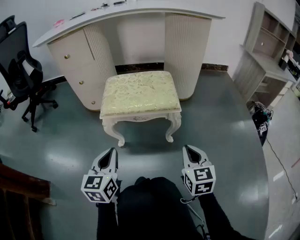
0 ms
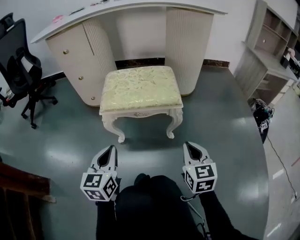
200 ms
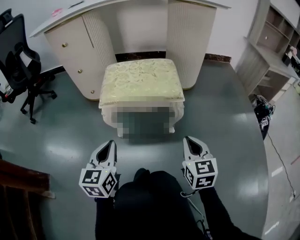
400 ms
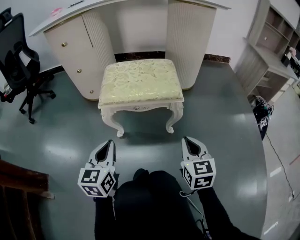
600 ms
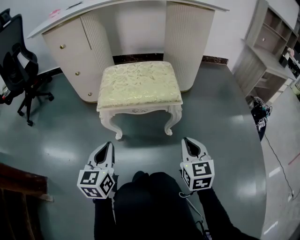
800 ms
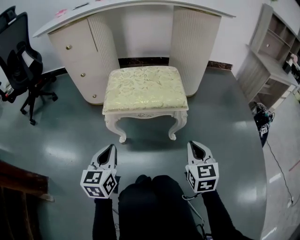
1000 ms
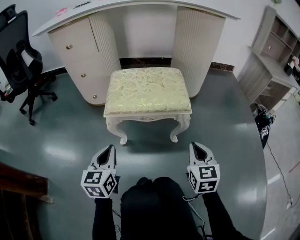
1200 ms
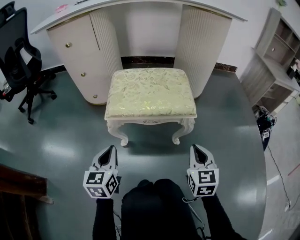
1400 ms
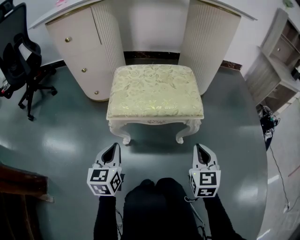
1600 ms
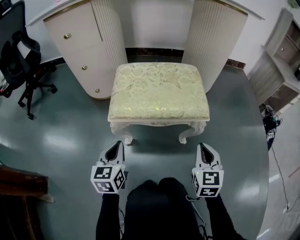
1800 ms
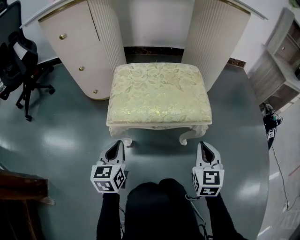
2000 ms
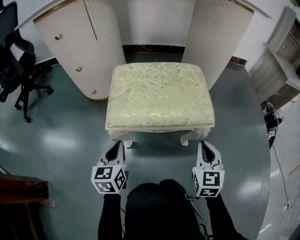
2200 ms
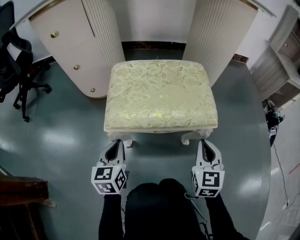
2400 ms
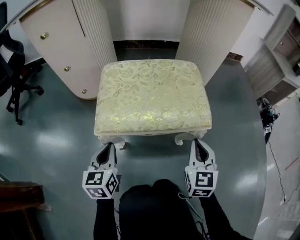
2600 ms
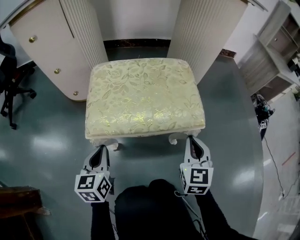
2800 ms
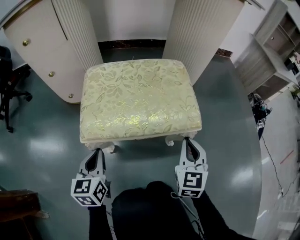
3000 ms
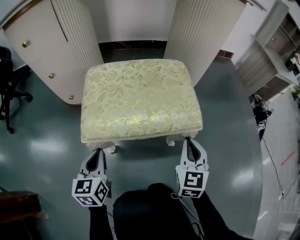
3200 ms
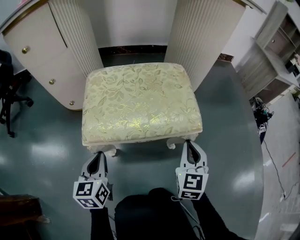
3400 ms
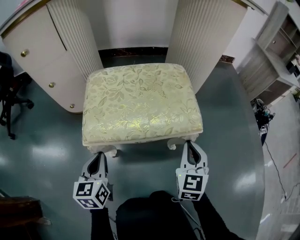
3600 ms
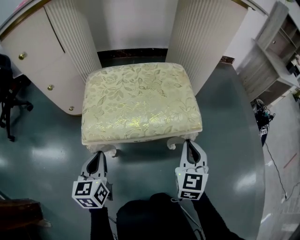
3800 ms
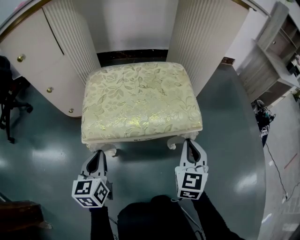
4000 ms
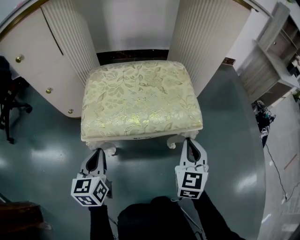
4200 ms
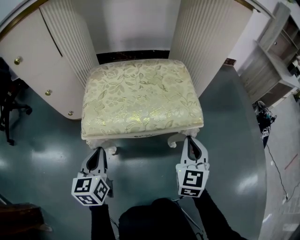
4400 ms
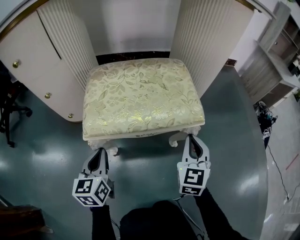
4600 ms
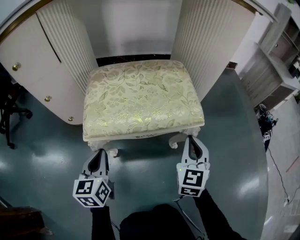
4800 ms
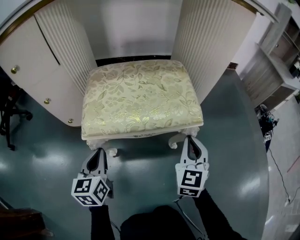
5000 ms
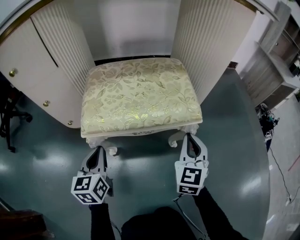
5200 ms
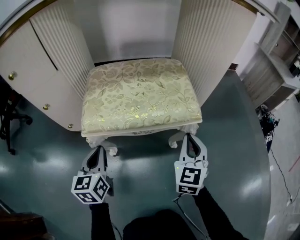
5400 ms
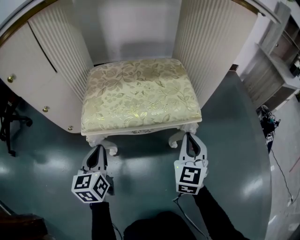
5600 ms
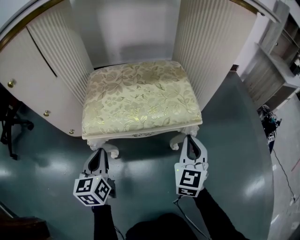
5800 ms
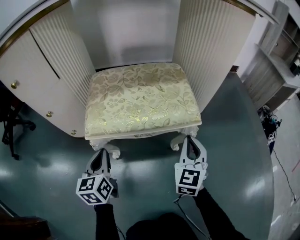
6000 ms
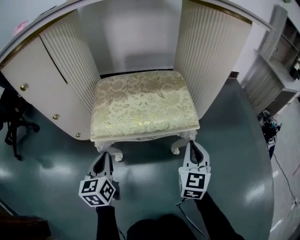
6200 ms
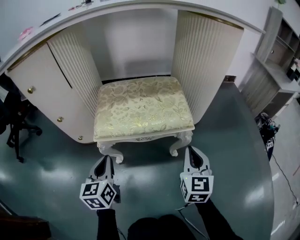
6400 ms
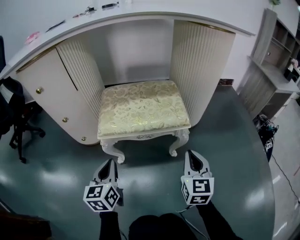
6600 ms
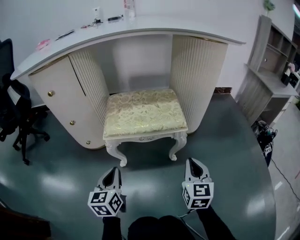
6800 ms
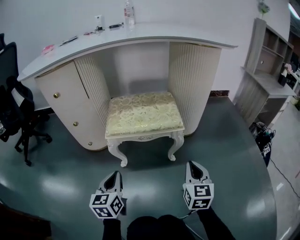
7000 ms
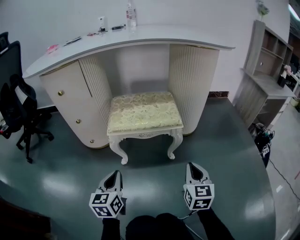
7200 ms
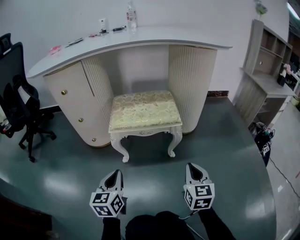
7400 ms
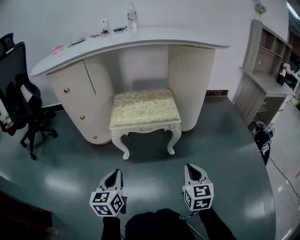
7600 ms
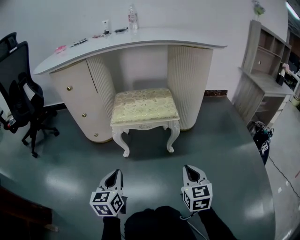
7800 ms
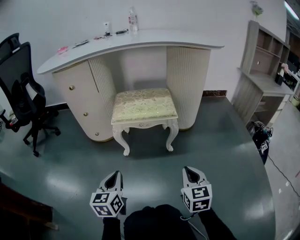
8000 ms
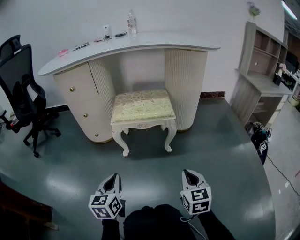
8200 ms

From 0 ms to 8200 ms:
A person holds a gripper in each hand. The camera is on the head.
From 0 ms to 1600 ms: The left gripper shifts approximately 10 cm downward and forward, while the right gripper travels forward by approximately 5 cm.
From 1600 ms to 3200 ms: The right gripper heads forward, covering approximately 10 cm; the left gripper goes approximately 10 cm forward and downward.
From 3200 ms to 5000 ms: There are only small adjustments of the grippers.
From 5000 ms to 6600 ms: Both grippers travel together backward, about 5 cm.
From 6600 ms to 8200 ms: Both grippers travel together backward, some 20 cm.

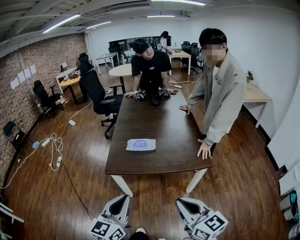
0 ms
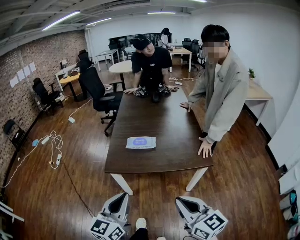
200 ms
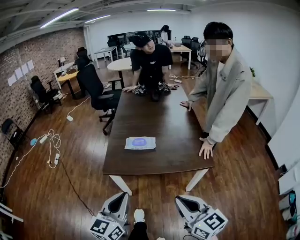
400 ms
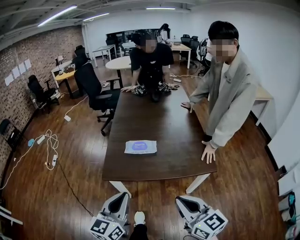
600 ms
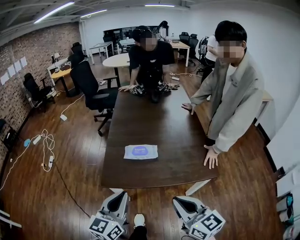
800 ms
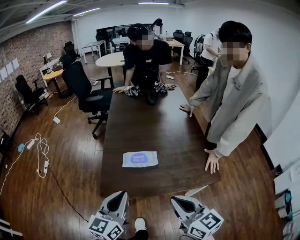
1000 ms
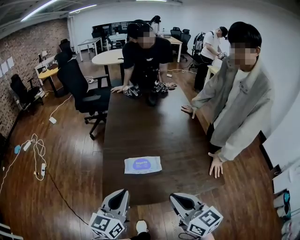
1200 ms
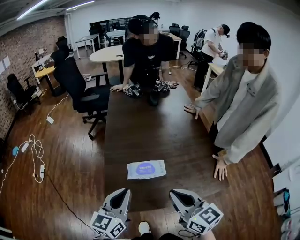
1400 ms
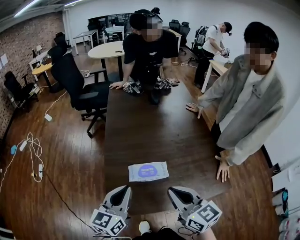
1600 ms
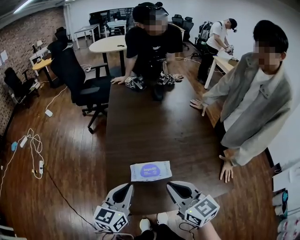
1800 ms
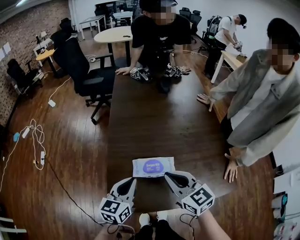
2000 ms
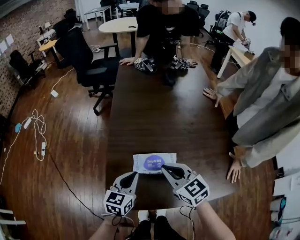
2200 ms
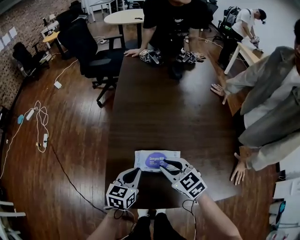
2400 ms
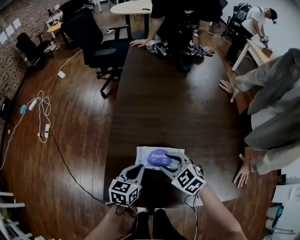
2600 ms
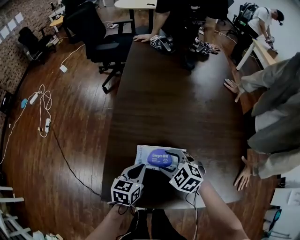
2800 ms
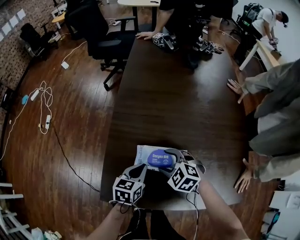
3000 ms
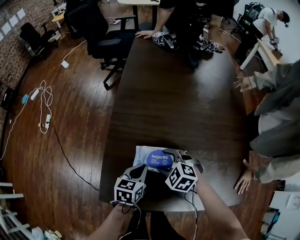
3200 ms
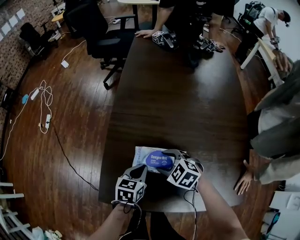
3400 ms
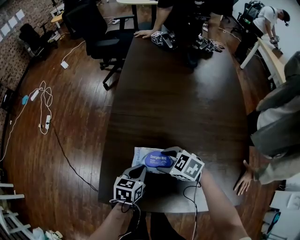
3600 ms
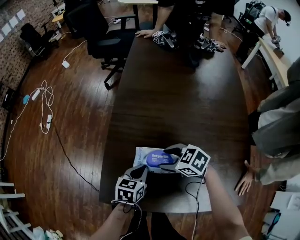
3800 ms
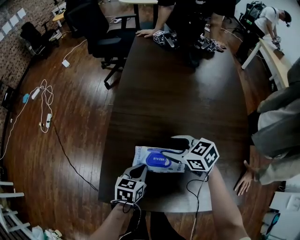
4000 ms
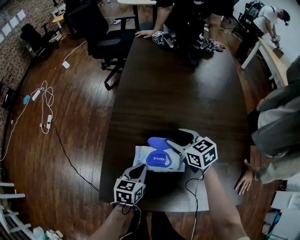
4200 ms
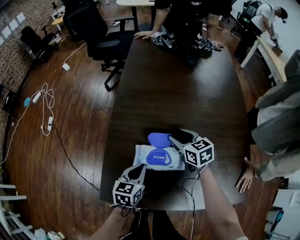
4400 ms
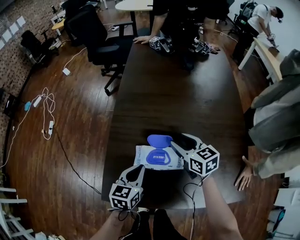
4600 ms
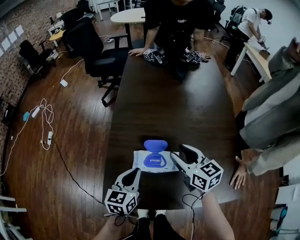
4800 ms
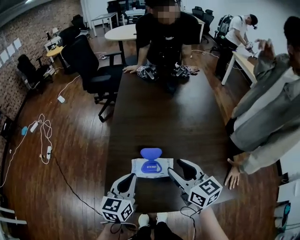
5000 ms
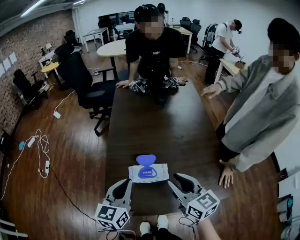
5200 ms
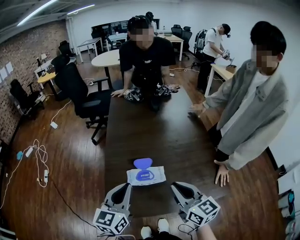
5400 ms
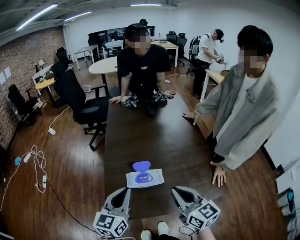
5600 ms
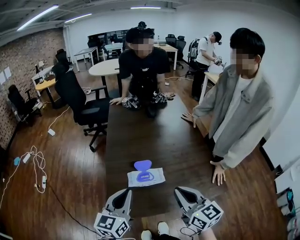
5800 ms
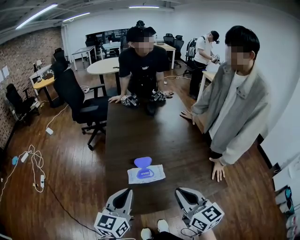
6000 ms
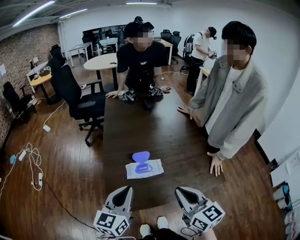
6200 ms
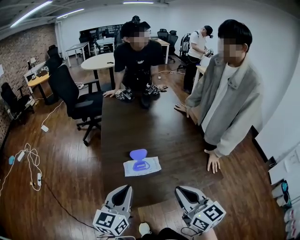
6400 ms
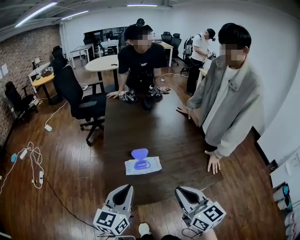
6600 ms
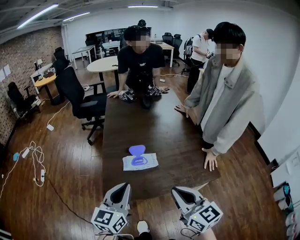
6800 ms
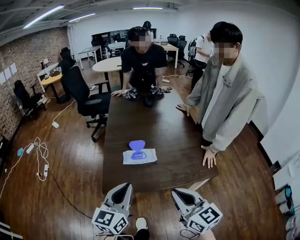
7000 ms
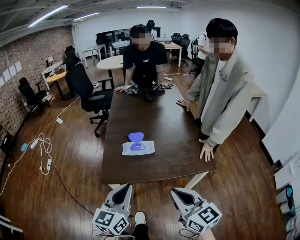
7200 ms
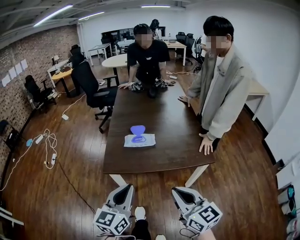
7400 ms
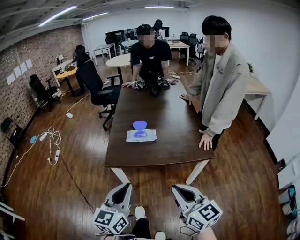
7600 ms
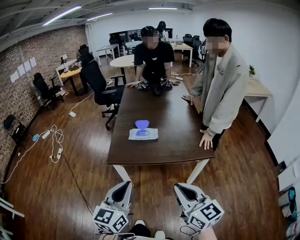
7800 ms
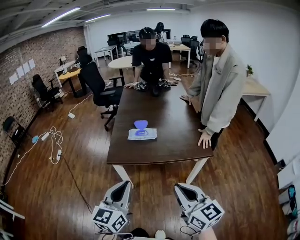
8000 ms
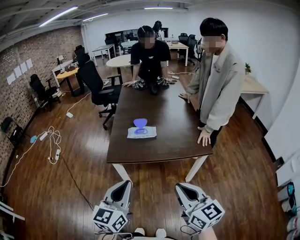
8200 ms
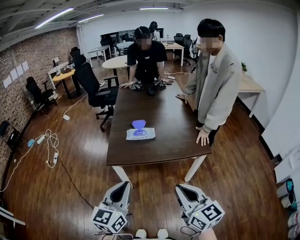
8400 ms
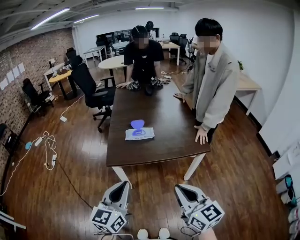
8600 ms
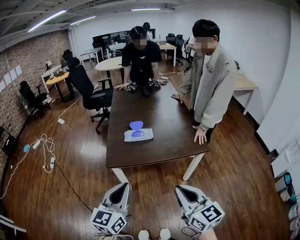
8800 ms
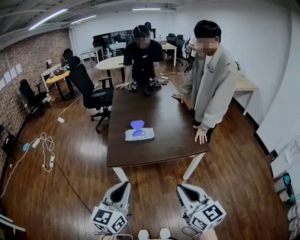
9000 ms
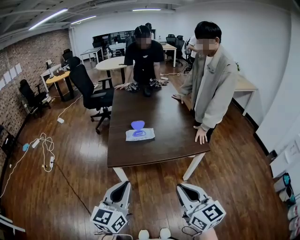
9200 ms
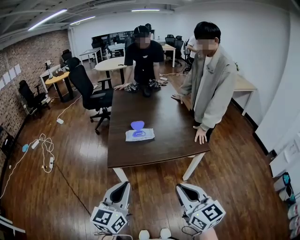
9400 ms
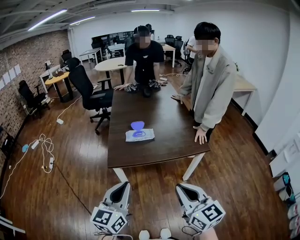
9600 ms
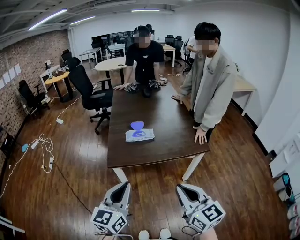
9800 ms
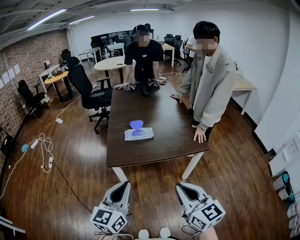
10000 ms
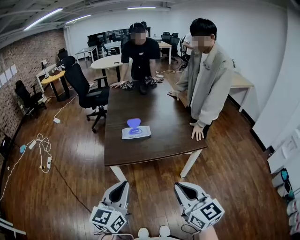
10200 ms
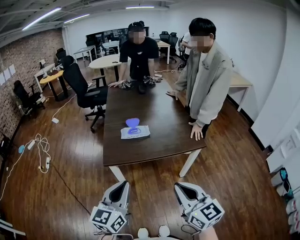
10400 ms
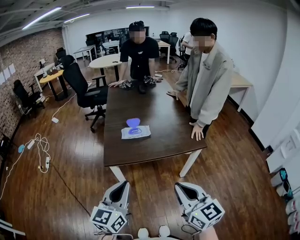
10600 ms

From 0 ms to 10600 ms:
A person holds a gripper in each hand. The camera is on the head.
From 0 ms to 1600 ms: Both grippers are carried forward, some 40 cm.
From 1600 ms to 3000 ms: The right gripper moves downward and forward, roughly 30 cm, points its fingers some 40 degrees further downward, and opens up, while the left gripper heads downward, covering approximately 25 cm, and angles its fingers downward, by approximately 30 degrees.
From 3000 ms to 4600 ms: The right gripper moves to the right, forward and upward, roughly 15 cm, and rolls clockwise, seen from behind, by about 40 degrees.
From 4600 ms to 6000 ms: The left gripper is displaced upward and backward by roughly 30 cm, and turns by some 30 degrees; the right gripper moves backward and upward, about 40 cm, rotates roughly 30 degrees, and closes up.
From 6000 ms to 7600 ms: Both grippers travel together backward, roughly 30 cm.
From 7600 ms to 9000 ms: The left gripper is displaced to the left by about 5 cm. Meanwhile the right gripper is displaced backward by approximately 5 cm.
From 9000 ms to 10600 ms: Neither gripper changes place.

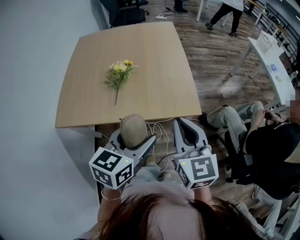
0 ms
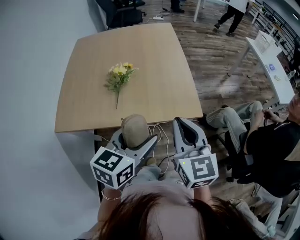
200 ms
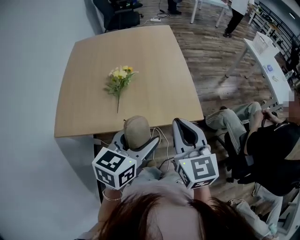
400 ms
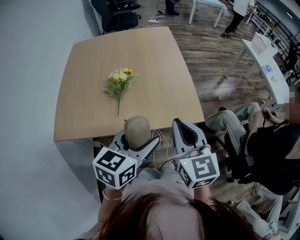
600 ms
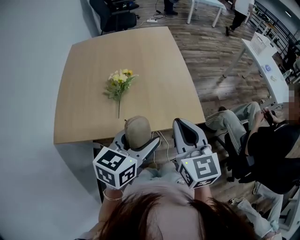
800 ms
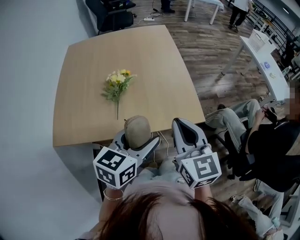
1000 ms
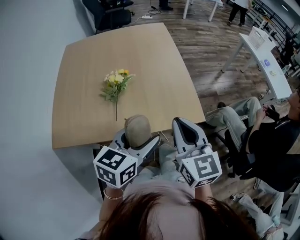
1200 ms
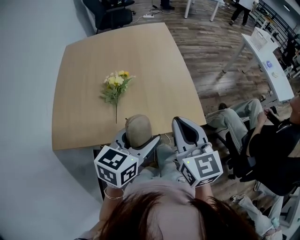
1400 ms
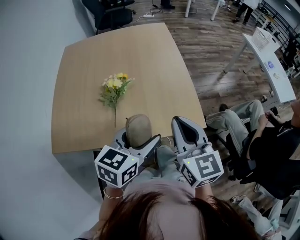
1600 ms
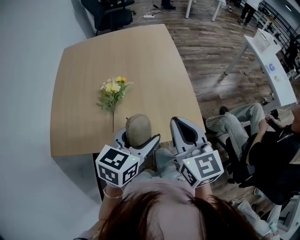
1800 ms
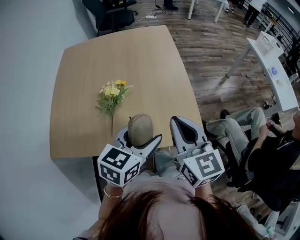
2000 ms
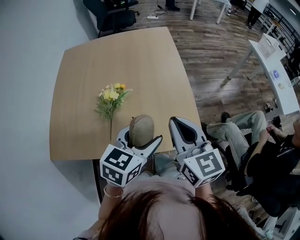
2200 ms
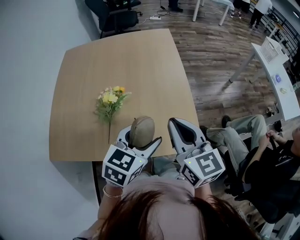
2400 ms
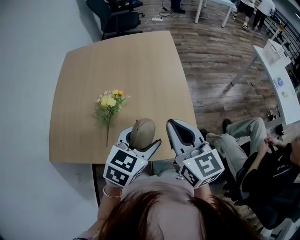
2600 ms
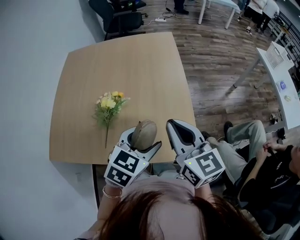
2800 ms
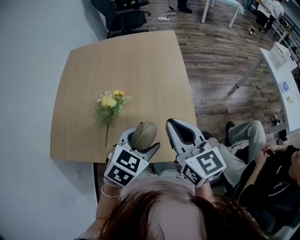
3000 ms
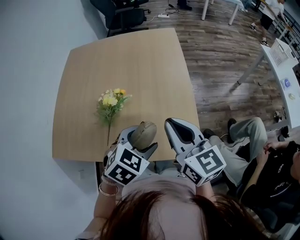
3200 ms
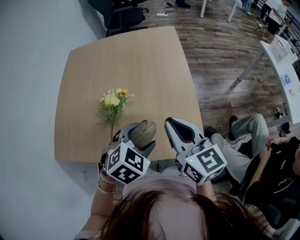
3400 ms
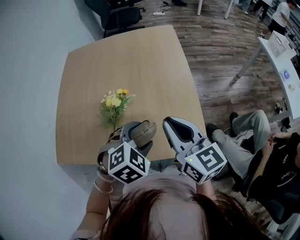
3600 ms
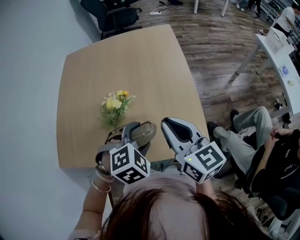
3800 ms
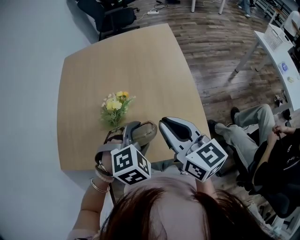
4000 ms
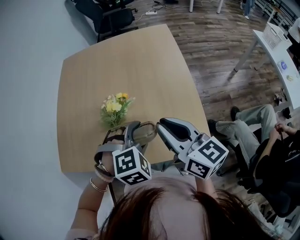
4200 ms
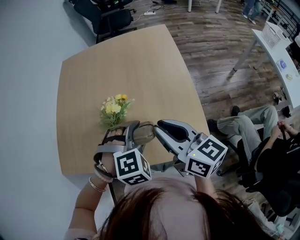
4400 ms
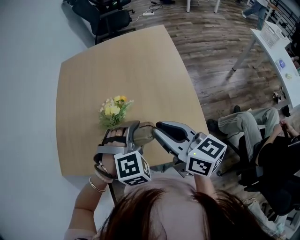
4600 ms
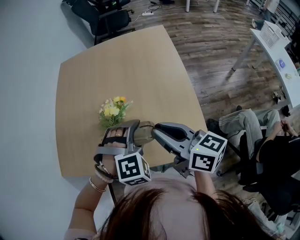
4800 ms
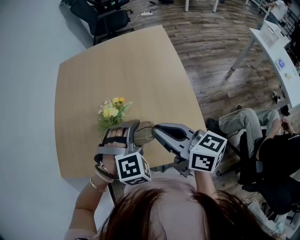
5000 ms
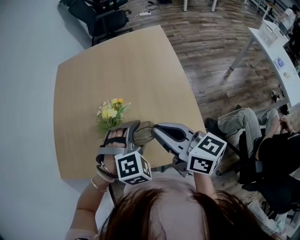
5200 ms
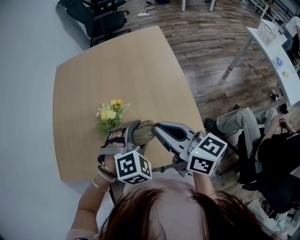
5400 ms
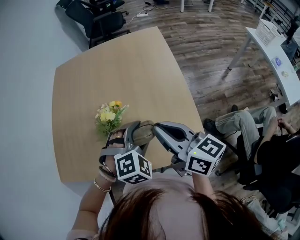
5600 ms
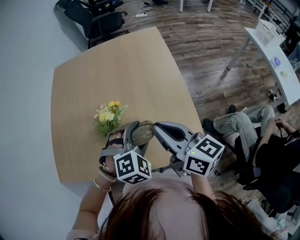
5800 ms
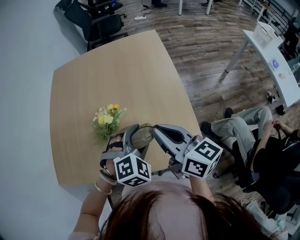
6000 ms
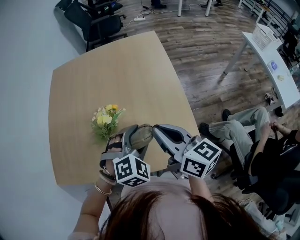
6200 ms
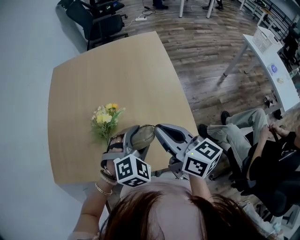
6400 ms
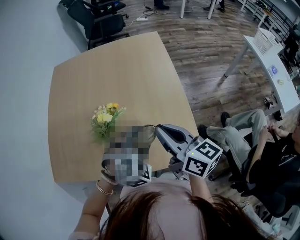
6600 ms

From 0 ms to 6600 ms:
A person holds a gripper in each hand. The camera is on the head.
From 0 ms to 1600 ms: The left gripper is displaced forward by approximately 10 cm. Meanwhile the right gripper heads forward and to the left, covering some 10 cm.
From 1600 ms to 3200 ms: The right gripper is displaced forward by roughly 15 cm; the left gripper heads forward and downward, covering roughly 15 cm, and changes its angle by some 30 degrees.
From 3200 ms to 5000 ms: The left gripper moves forward, approximately 5 cm, and rotates around the line of its fingers by about 50 degrees, clockwise from behind; the right gripper travels to the left by about 5 cm, and swivels approximately 30 degrees.
From 5000 ms to 6600 ms: The left gripper changes its angle by roughly 20 degrees.
